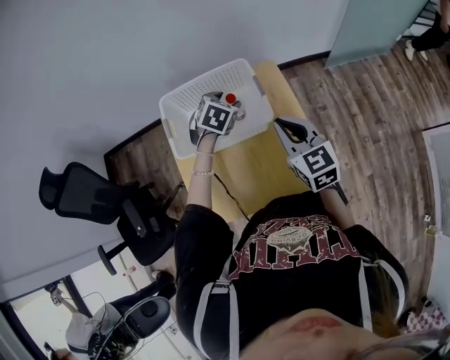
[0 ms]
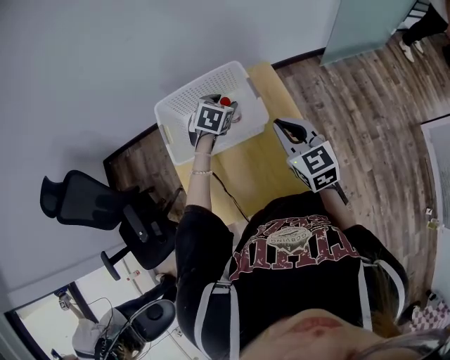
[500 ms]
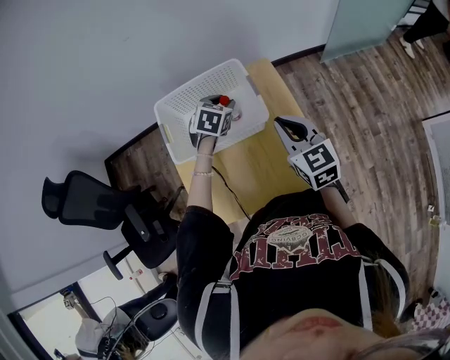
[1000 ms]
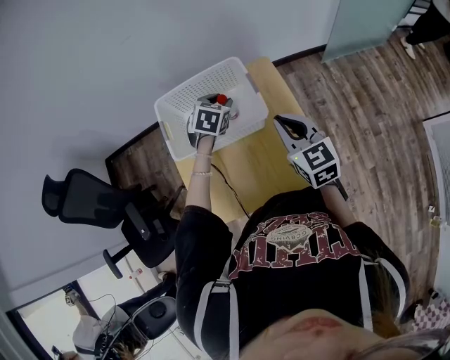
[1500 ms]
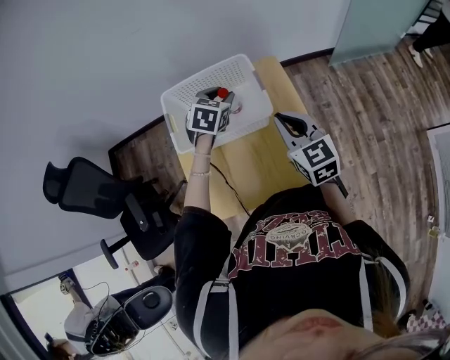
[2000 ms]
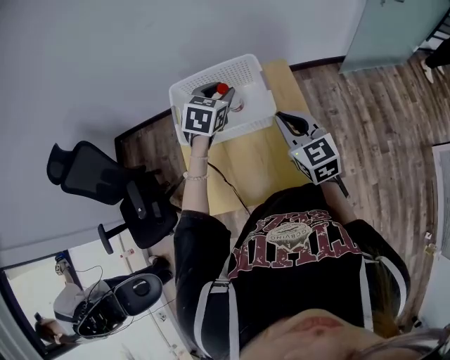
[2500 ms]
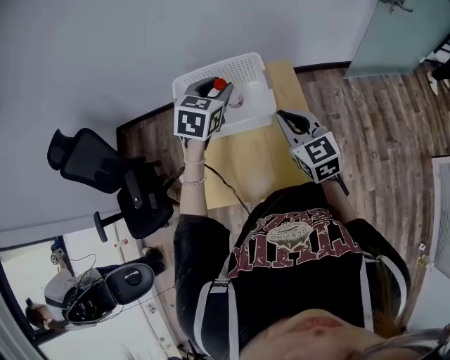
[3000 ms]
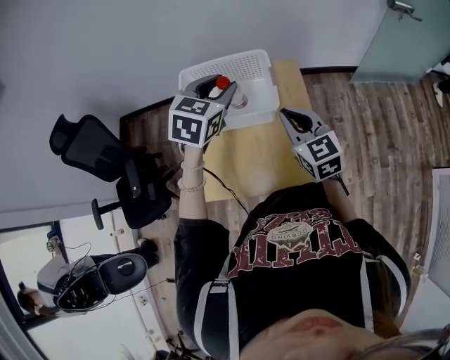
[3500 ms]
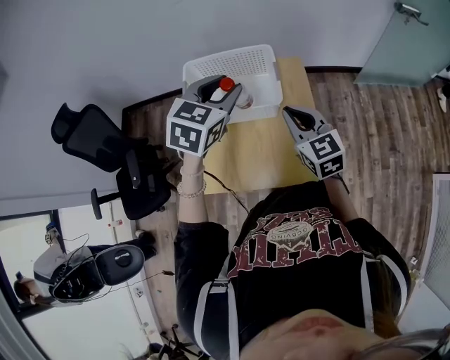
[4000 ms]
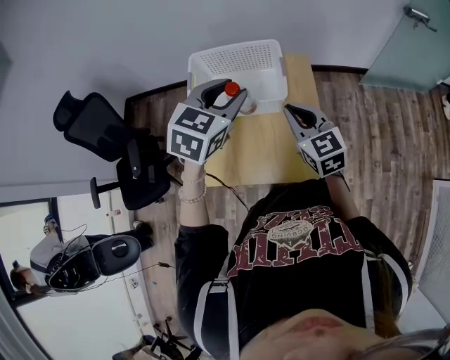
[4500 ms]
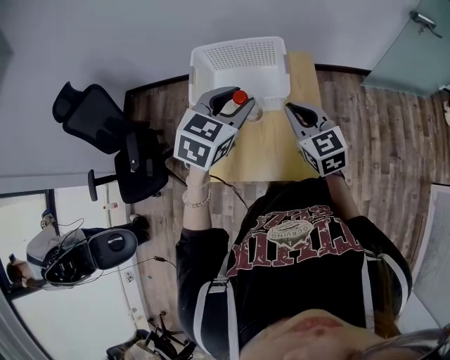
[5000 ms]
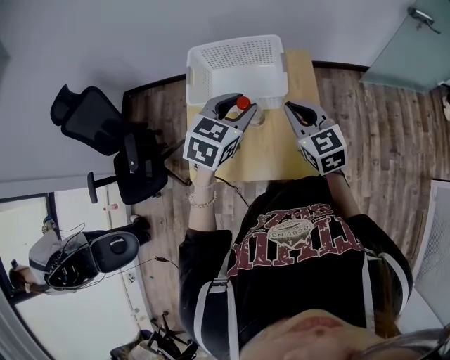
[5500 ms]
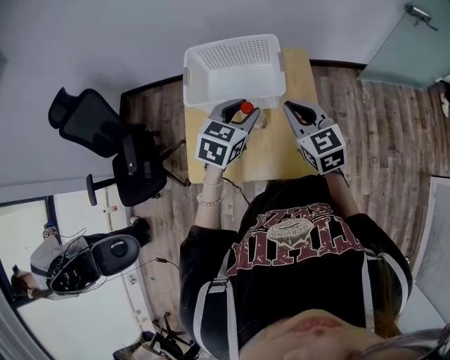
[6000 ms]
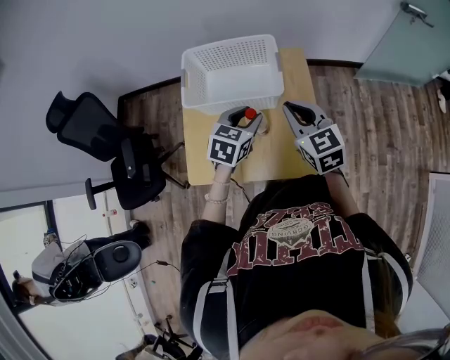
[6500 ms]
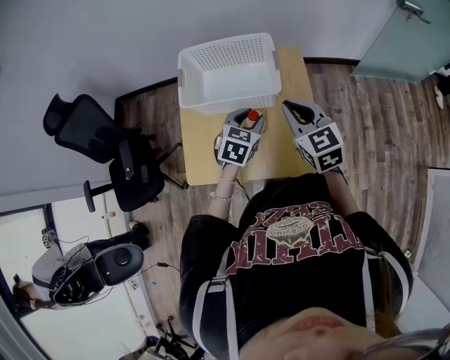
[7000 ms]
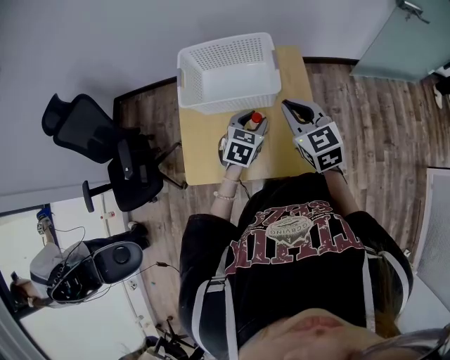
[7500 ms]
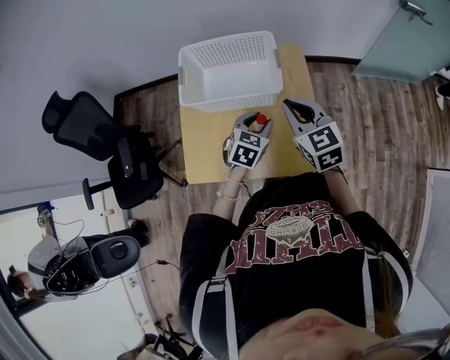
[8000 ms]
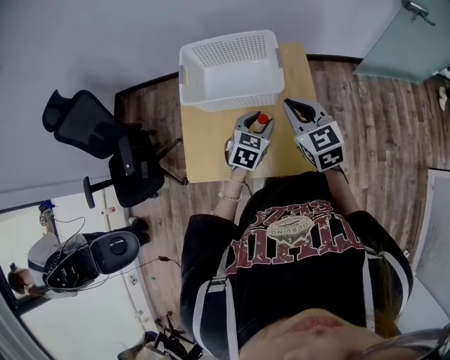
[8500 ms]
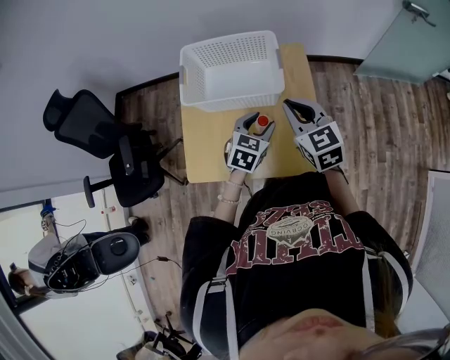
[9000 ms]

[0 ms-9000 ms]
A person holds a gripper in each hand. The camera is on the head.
0 ms to 2000 ms: There are only small adjustments of the grippers.
2000 ms to 4500 ms: The left gripper is displaced upward and backward by some 20 cm.
4500 ms to 7000 ms: The left gripper moves downward, roughly 20 cm.
7000 ms to 9000 ms: The left gripper shifts by about 5 cm.

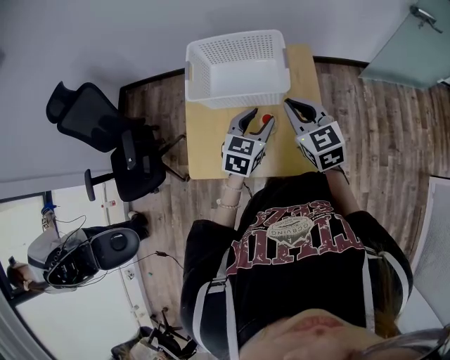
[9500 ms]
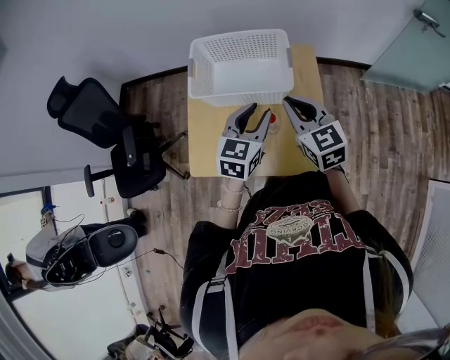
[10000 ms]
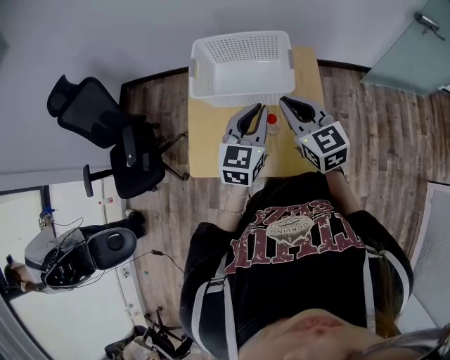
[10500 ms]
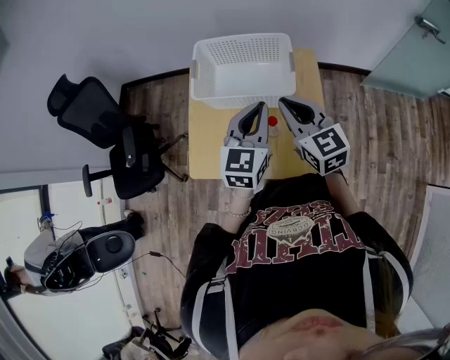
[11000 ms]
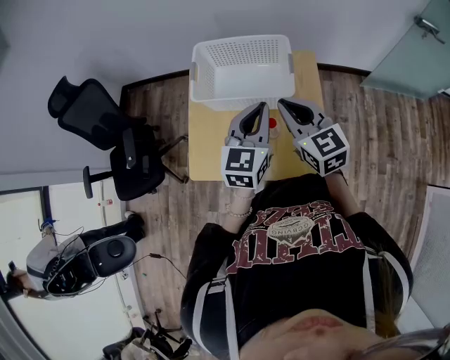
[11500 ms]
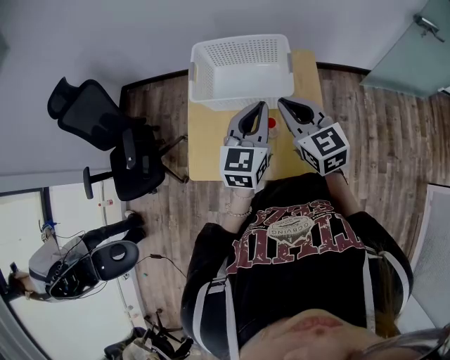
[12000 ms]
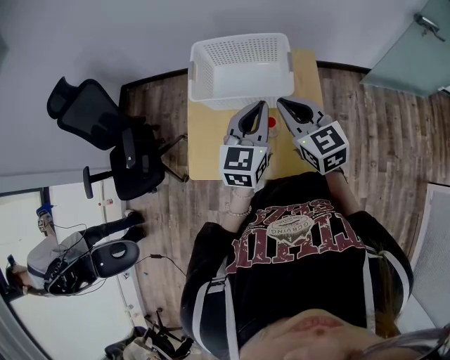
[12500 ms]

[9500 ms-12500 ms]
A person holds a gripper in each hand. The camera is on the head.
9500 ms to 11000 ms: The left gripper goes roughly 10 cm upward, changes its angle by roughly 20 degrees, and closes up, while the right gripper moves to the left, roughly 5 cm.
11000 ms to 12500 ms: The grippers stay close to where they were, moving slightly.

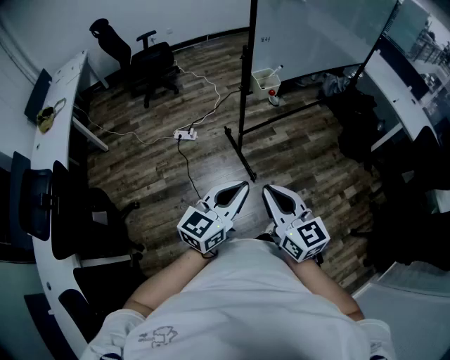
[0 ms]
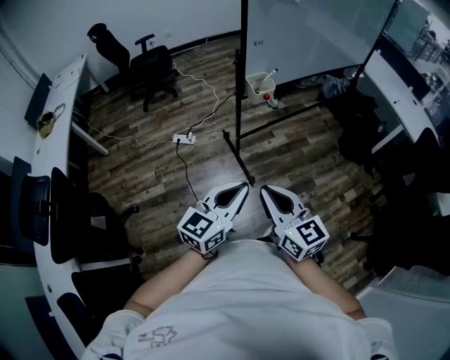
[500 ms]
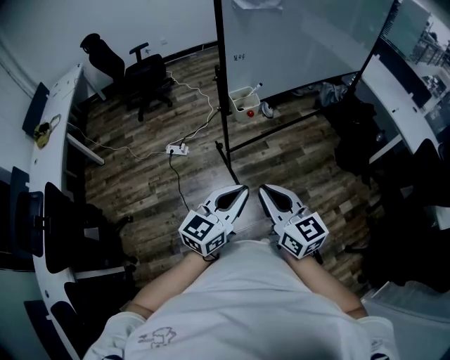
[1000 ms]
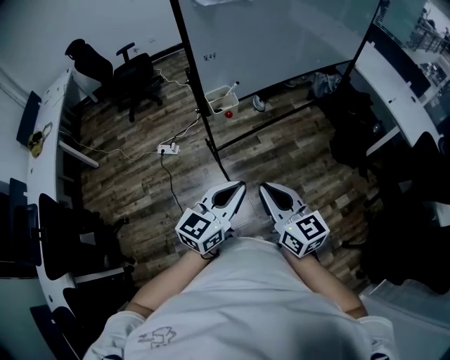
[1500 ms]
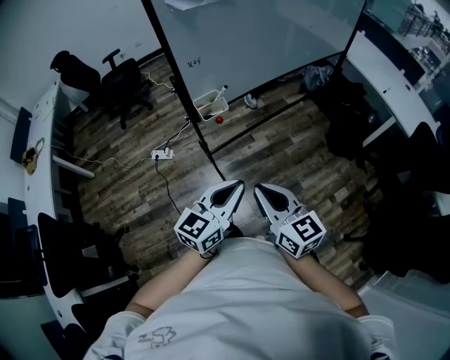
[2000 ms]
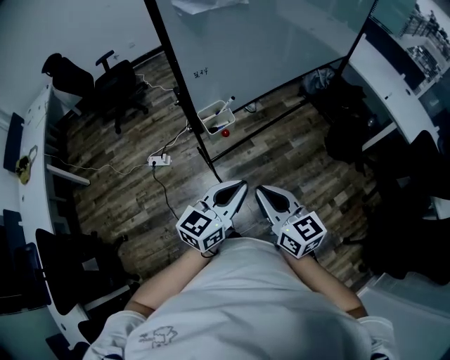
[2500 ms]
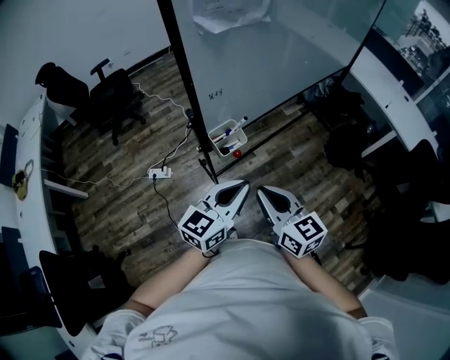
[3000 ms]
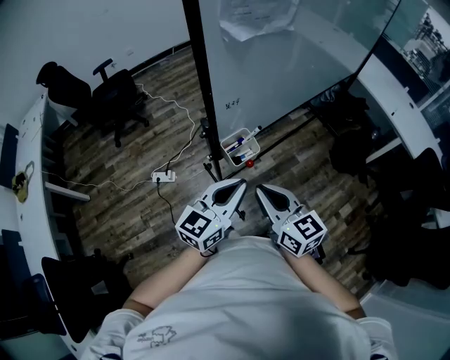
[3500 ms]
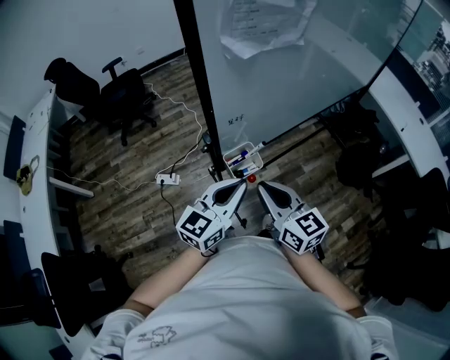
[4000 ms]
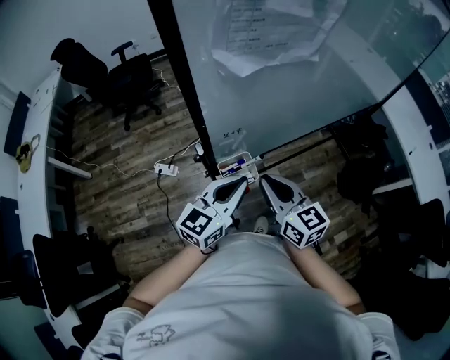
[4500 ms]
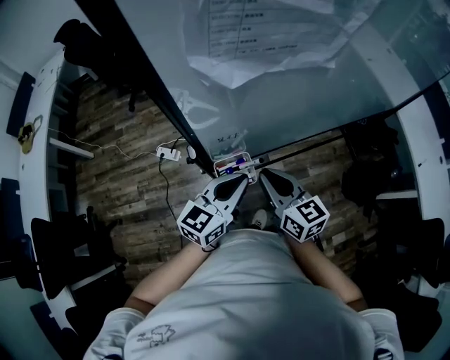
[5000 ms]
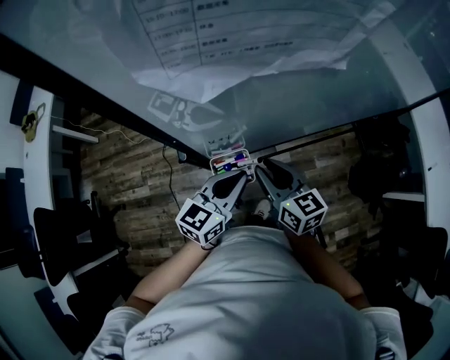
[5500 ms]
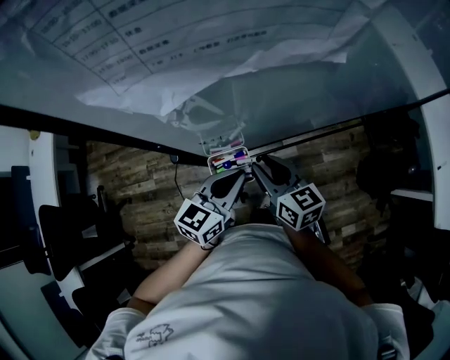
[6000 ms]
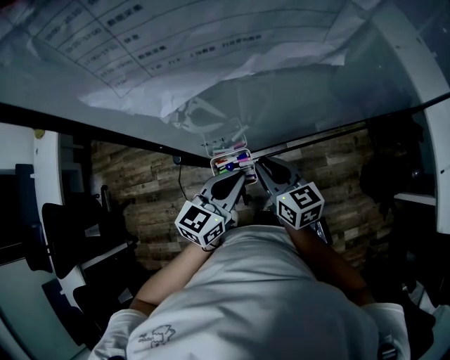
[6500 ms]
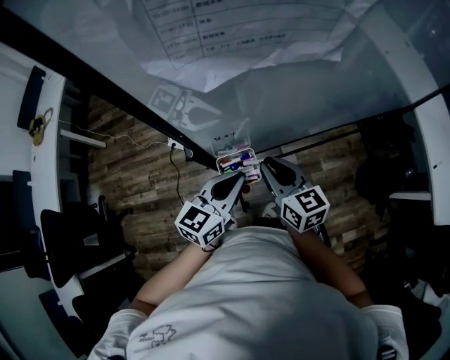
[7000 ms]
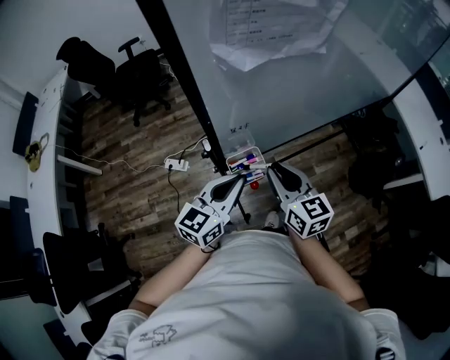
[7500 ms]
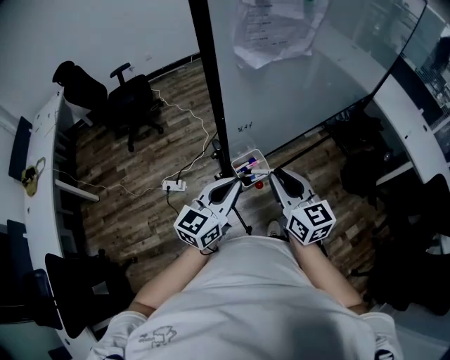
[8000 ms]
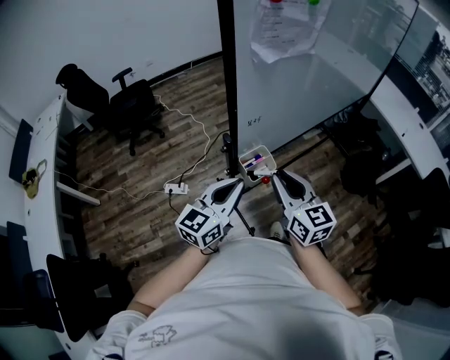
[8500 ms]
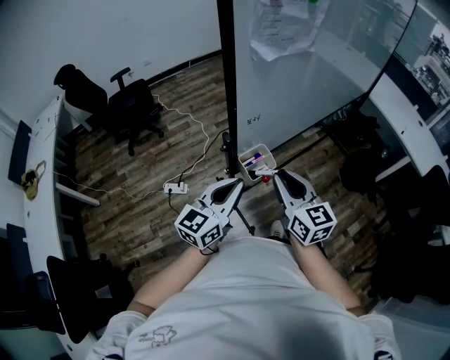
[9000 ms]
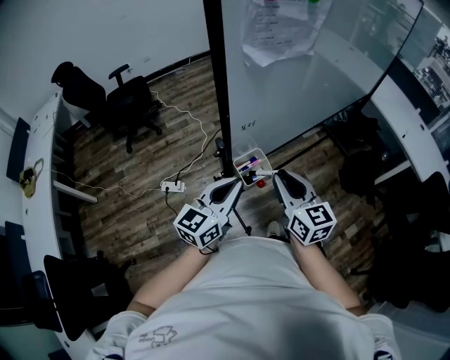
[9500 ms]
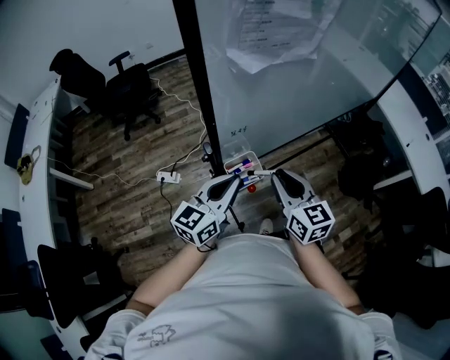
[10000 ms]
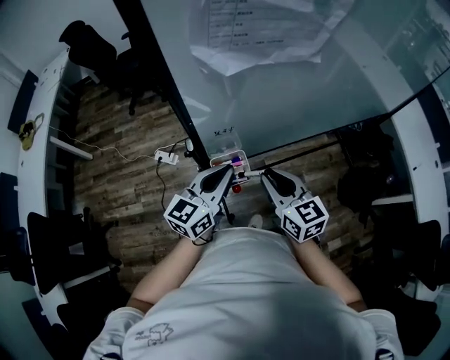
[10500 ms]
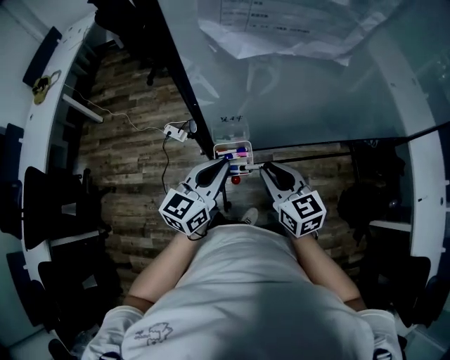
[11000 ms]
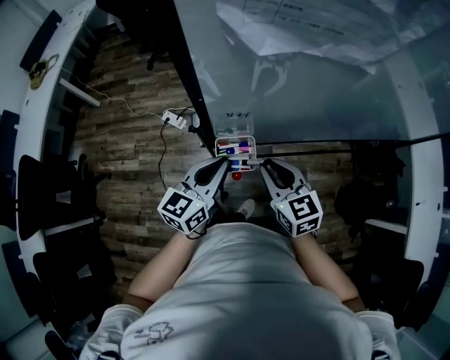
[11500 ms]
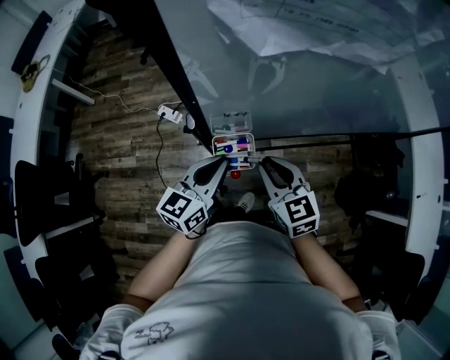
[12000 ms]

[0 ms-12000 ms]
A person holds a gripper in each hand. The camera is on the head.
0 ms to 2000 ms: Both grippers move forward and to the right, roughly 30 cm.
2000 ms to 4000 ms: The grippers both shift forward and to the left by about 30 cm.
4000 ms to 6000 ms: The left gripper heads forward, downward and to the right, covering some 15 cm, and changes its angle by roughly 20 degrees. The right gripper goes roughly 20 cm forward and downward, swivels about 20 degrees, and opens its fingers.
6000 ms to 8000 ms: The left gripper travels upward, to the left and backward by roughly 15 cm, while the right gripper heads upward and backward, covering approximately 15 cm, and turns by roughly 30 degrees.
8000 ms to 10000 ms: The right gripper ends up approximately 5 cm from where it was.
10000 ms to 12000 ms: Both grippers travel together downward, roughly 10 cm. The left gripper rotates approximately 20 degrees, while the right gripper turns by about 30 degrees.

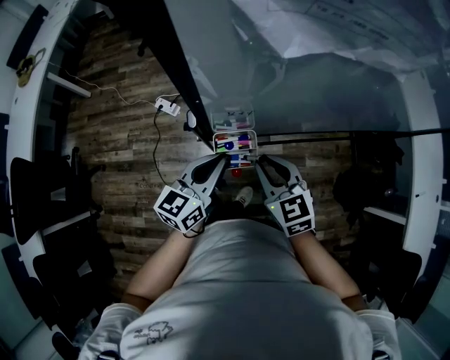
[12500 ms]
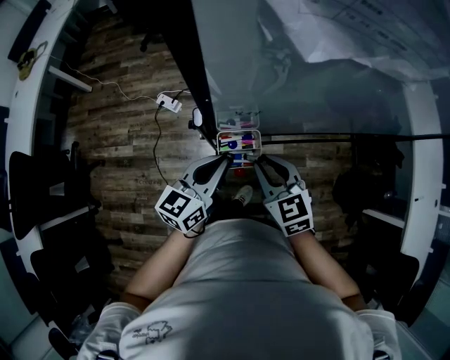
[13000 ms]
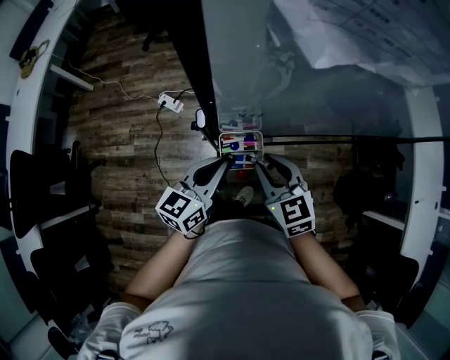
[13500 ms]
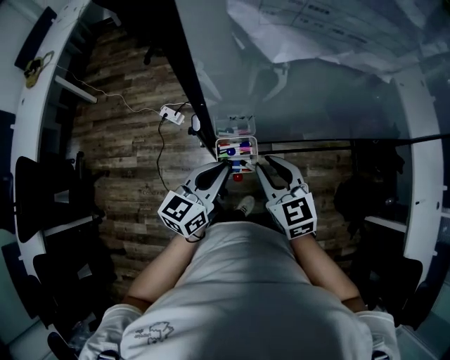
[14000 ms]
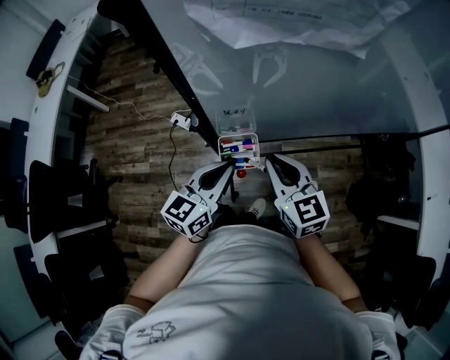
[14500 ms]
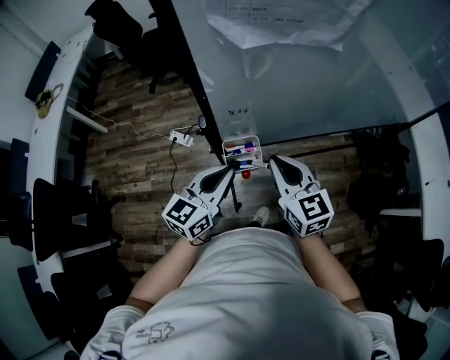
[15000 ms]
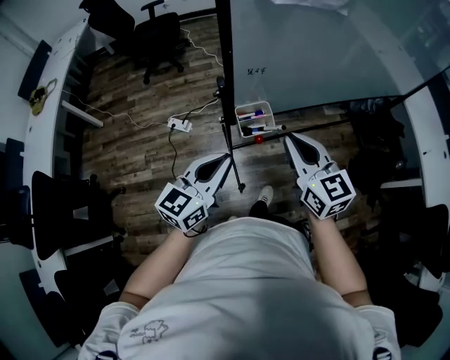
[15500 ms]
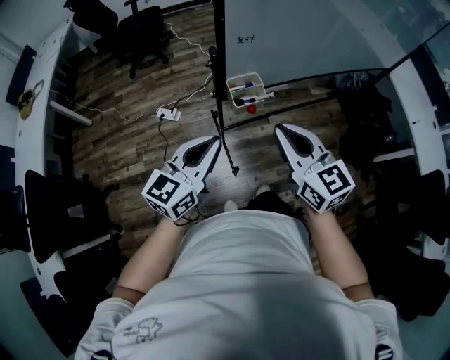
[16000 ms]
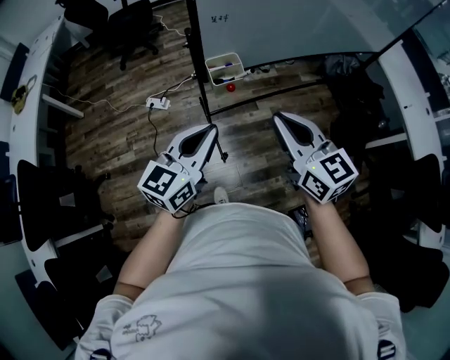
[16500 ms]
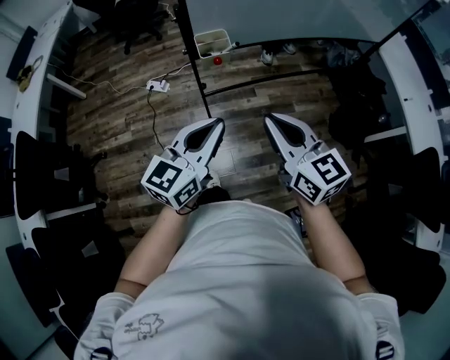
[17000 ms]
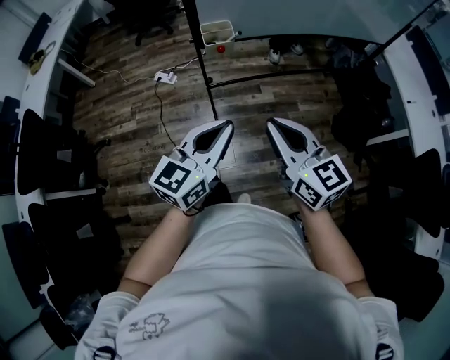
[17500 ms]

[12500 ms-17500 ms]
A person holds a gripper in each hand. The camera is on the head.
12500 ms to 15000 ms: The left gripper heads upward and backward, covering some 10 cm. The right gripper is displaced upward by roughly 10 cm.
15000 ms to 17500 ms: The two grippers go approximately 35 cm backward.
